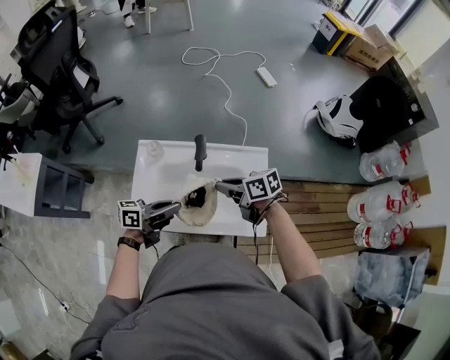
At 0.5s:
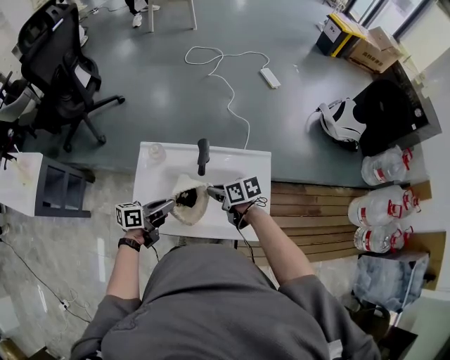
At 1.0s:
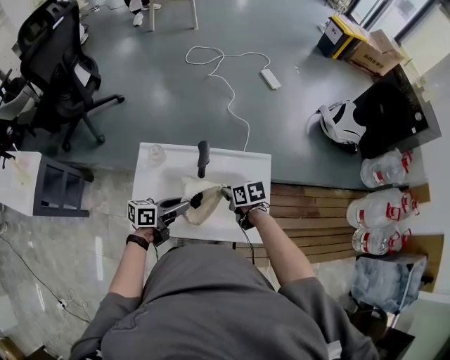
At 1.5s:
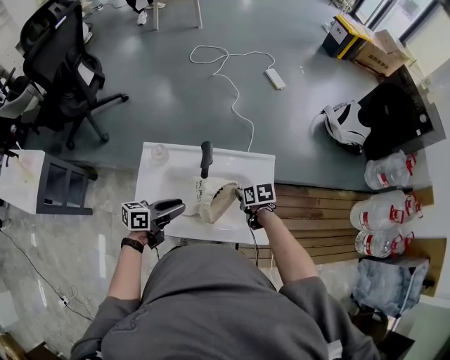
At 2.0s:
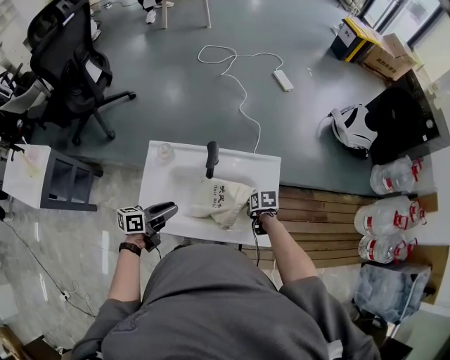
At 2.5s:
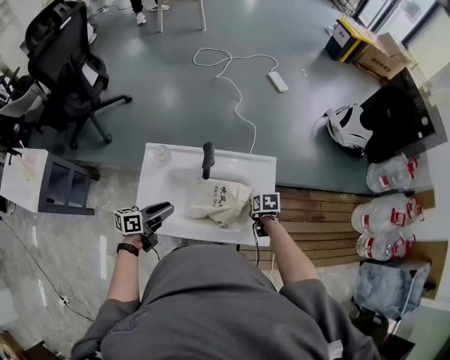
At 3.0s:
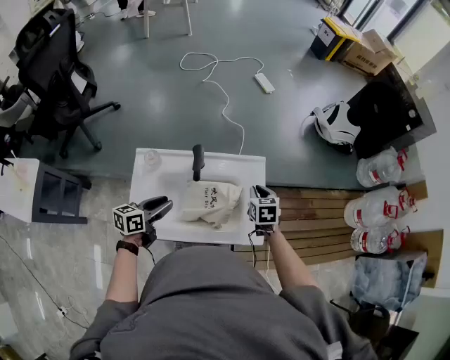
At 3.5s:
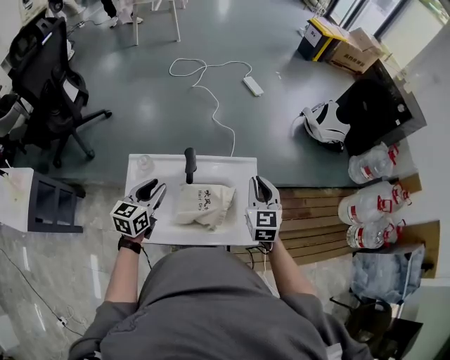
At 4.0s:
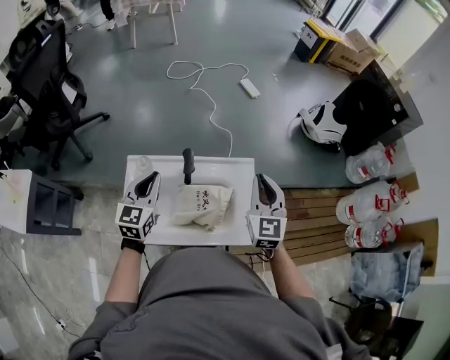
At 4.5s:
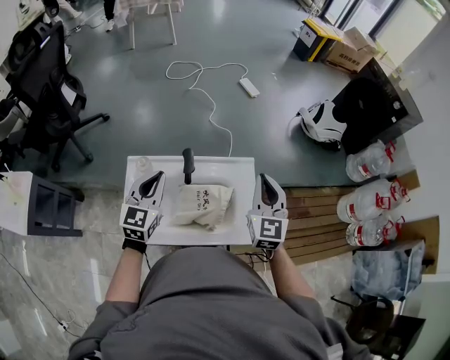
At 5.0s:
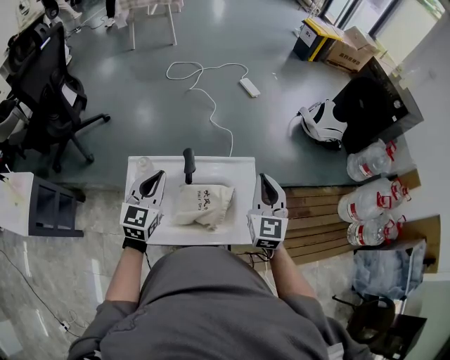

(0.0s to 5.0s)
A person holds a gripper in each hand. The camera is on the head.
0.0s - 2.5s: The right gripper heads downward, covering approximately 20 cm, and tilts its fingers roughly 40 degrees downward. The left gripper shifts by about 10 cm, rotates about 20 degrees, and opens its fingers.
2.5s - 5.0s: The left gripper is displaced upward and forward by roughly 20 cm, rolls clockwise, seen from behind, by roughly 50 degrees, and closes. Meanwhile the right gripper heads upward, covering some 35 cm, and tips its fingers upward by approximately 60 degrees.

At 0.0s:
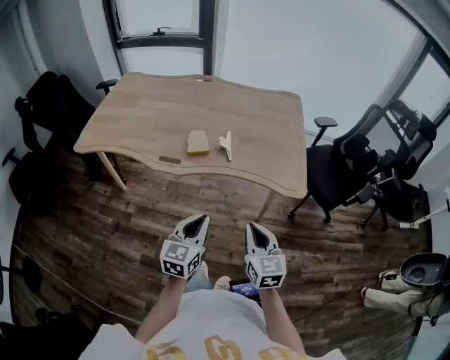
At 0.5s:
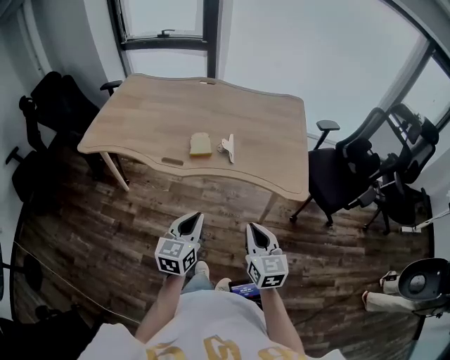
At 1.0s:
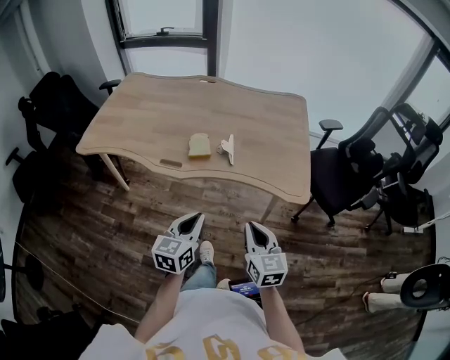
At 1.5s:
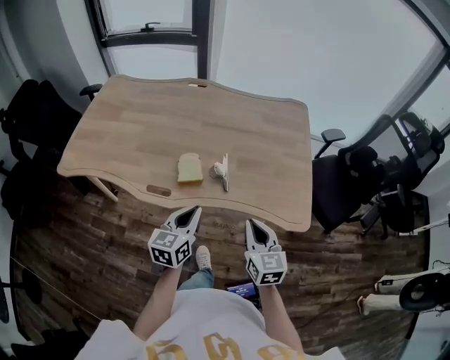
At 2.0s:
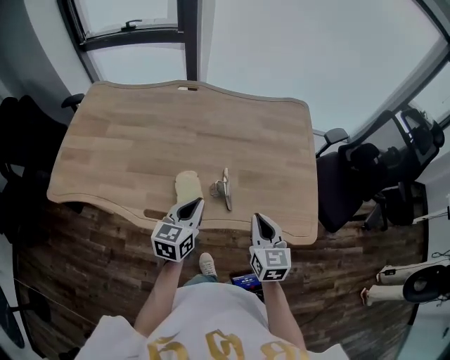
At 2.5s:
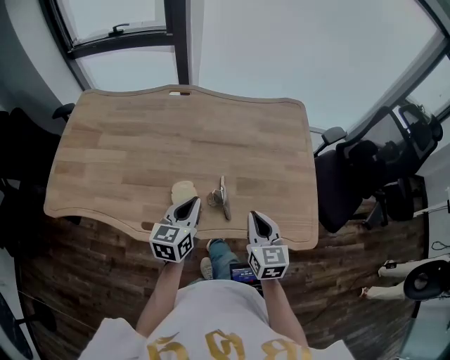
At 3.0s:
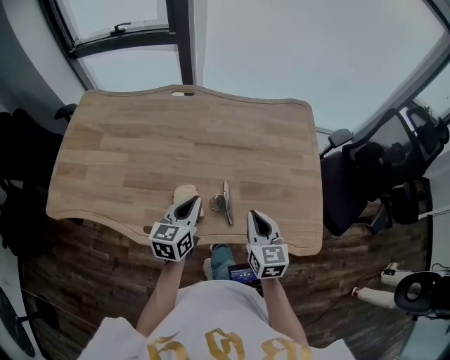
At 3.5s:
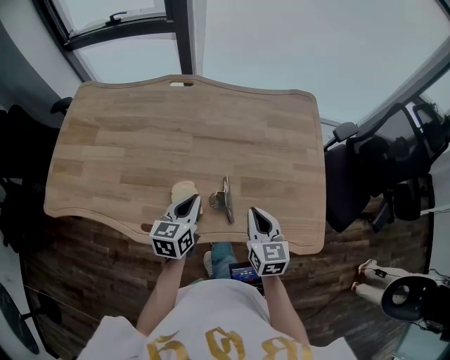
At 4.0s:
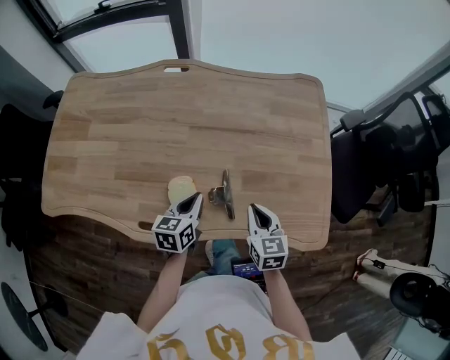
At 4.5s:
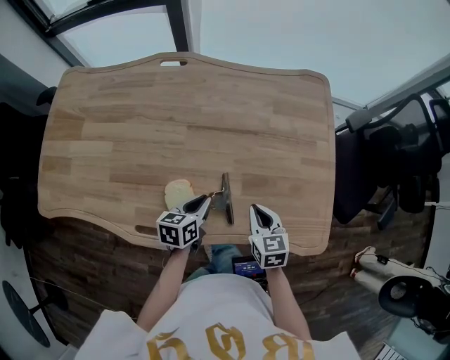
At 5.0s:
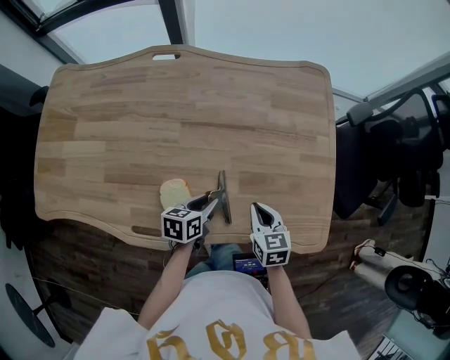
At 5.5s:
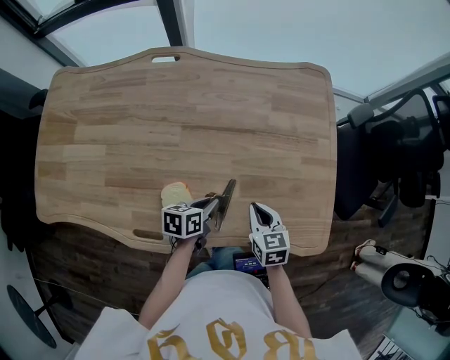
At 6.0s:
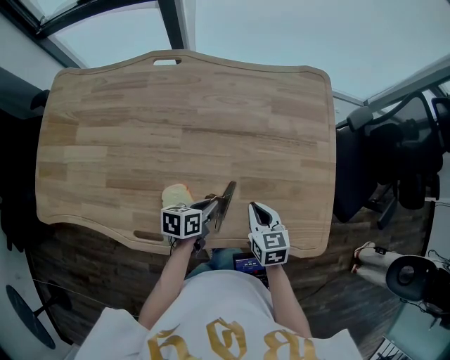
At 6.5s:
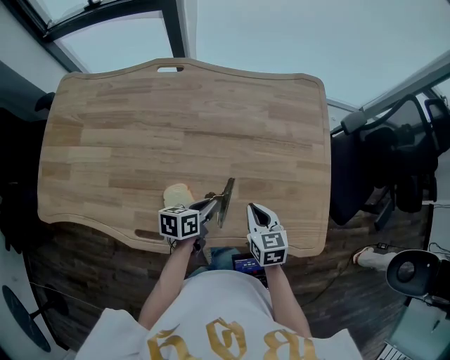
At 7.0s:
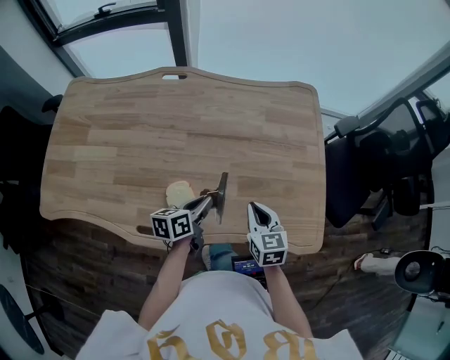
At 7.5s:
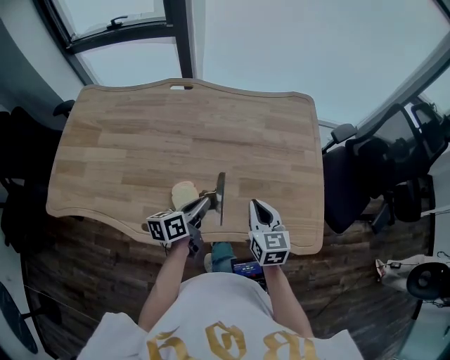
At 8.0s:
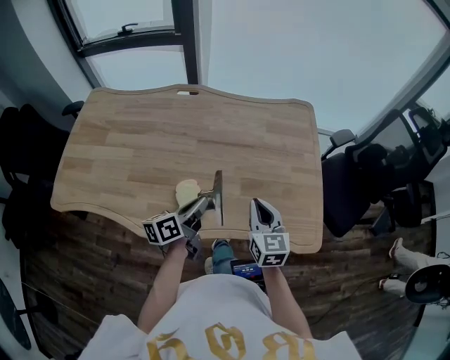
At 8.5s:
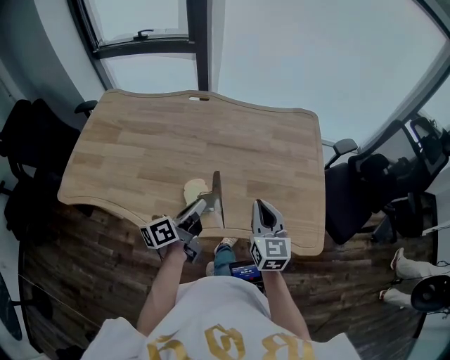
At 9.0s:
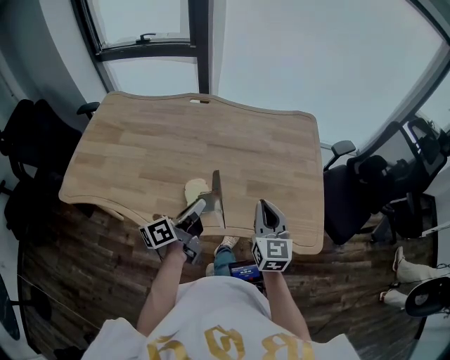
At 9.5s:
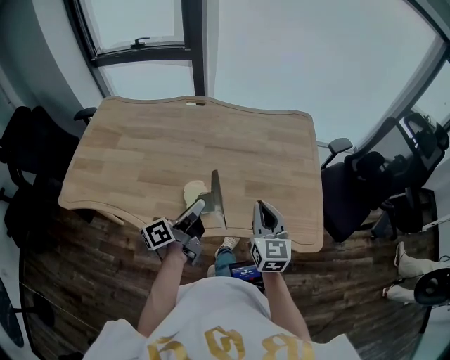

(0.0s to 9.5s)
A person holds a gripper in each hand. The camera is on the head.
0.0s - 2.0s: Both grippers travel together forward, roughly 35 cm.
2.0s - 4.0s: Both grippers move downward and forward, roughly 15 cm.
4.0s - 5.5s: The left gripper moves downward and to the right, about 10 cm, and rotates approximately 30 degrees. The right gripper heads downward, covering some 5 cm.
5.5s - 7.5s: Both grippers travel together upward, approximately 10 cm. The left gripper rotates about 30 degrees.
7.5s - 9.5s: The grippers both shift upward and backward by roughly 10 cm. The left gripper rotates about 30 degrees.

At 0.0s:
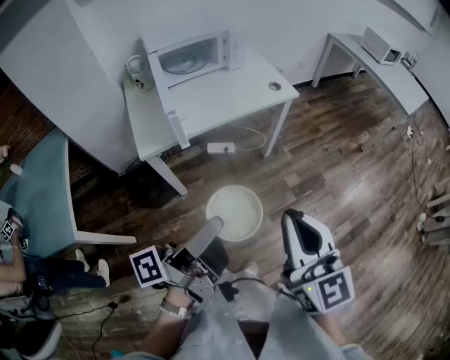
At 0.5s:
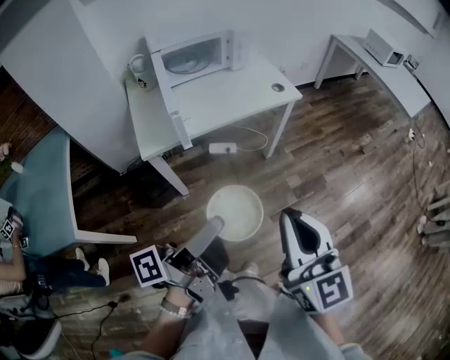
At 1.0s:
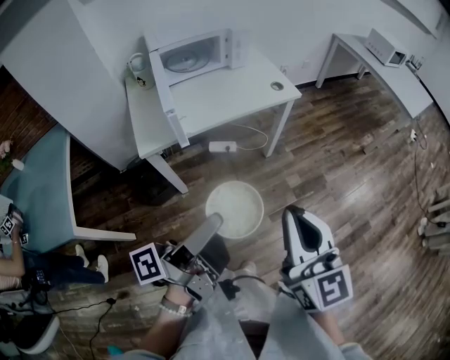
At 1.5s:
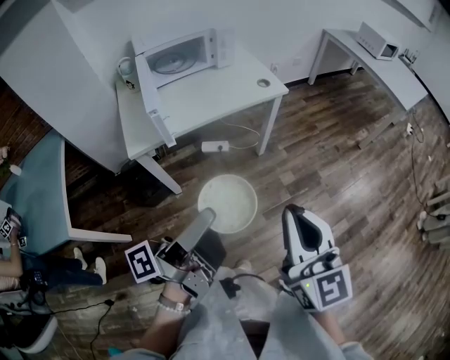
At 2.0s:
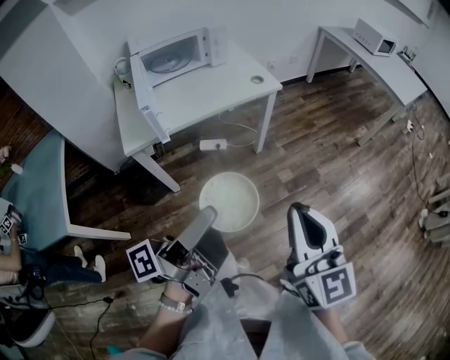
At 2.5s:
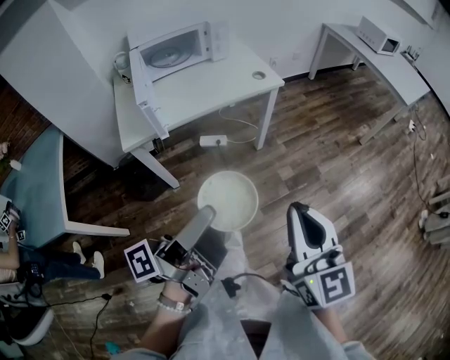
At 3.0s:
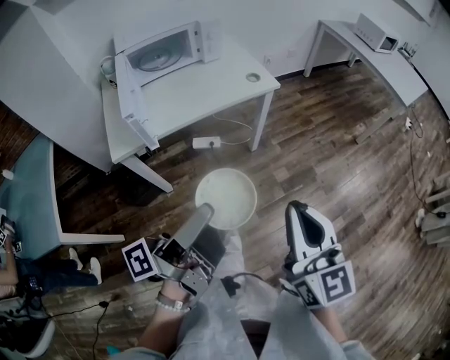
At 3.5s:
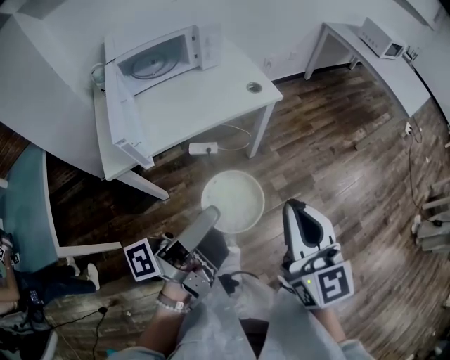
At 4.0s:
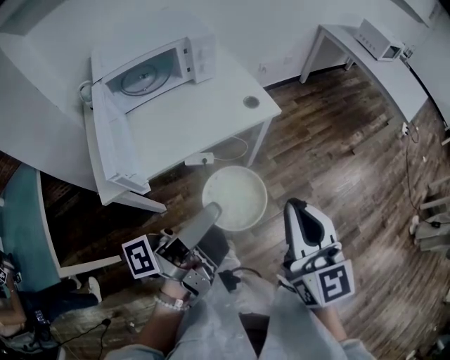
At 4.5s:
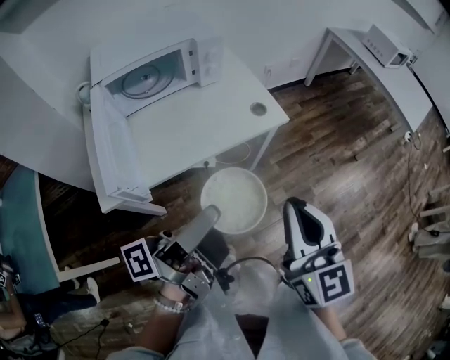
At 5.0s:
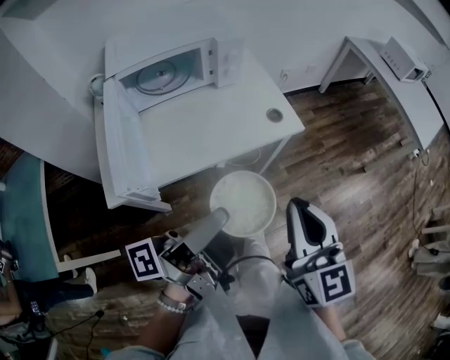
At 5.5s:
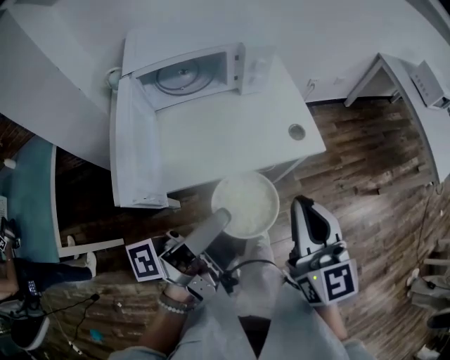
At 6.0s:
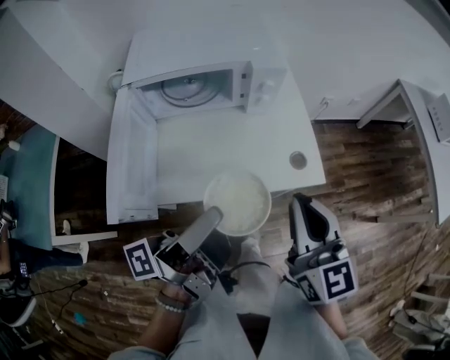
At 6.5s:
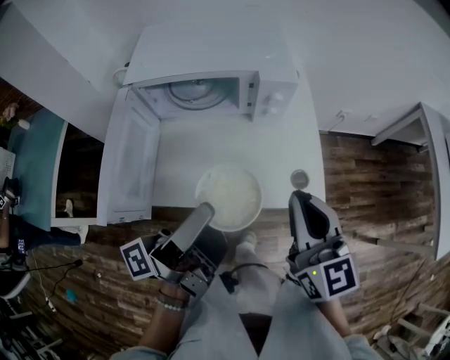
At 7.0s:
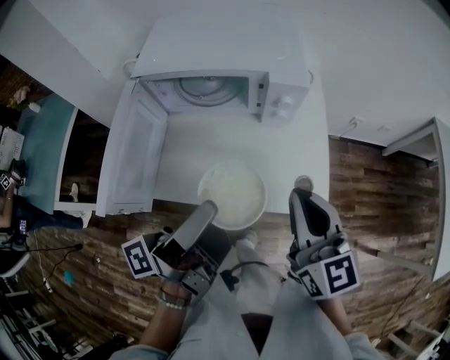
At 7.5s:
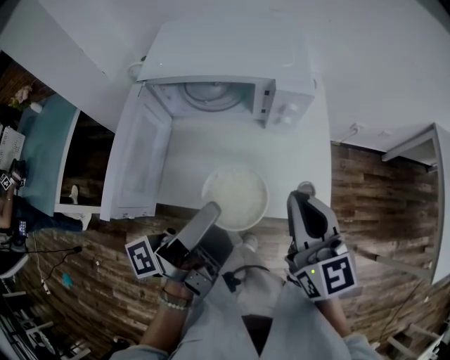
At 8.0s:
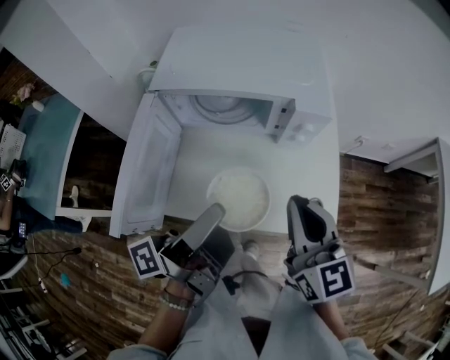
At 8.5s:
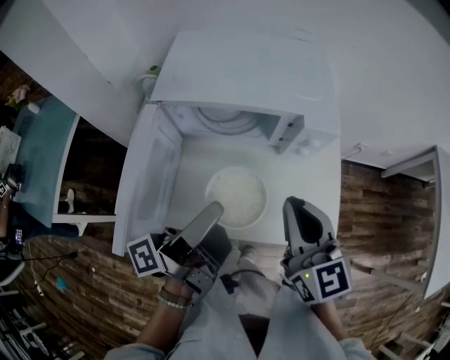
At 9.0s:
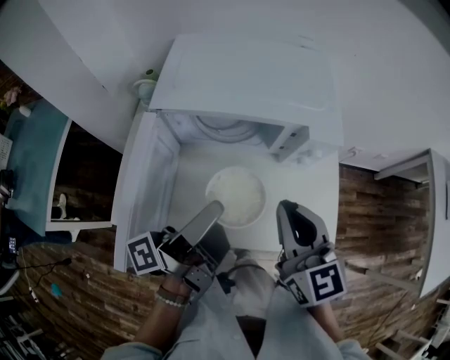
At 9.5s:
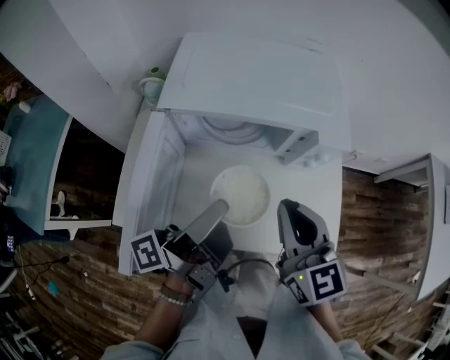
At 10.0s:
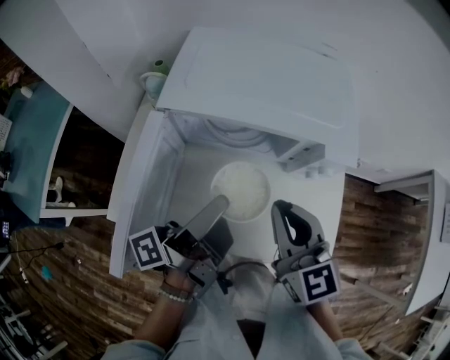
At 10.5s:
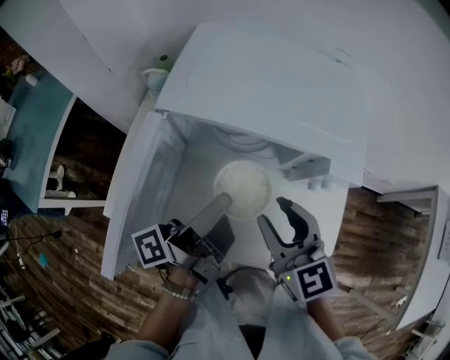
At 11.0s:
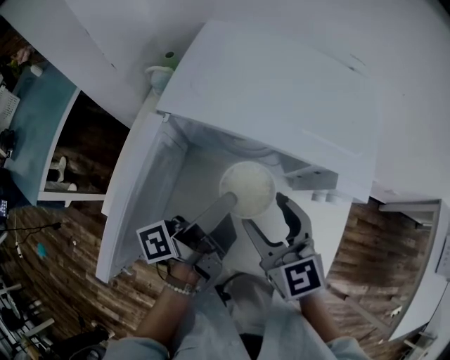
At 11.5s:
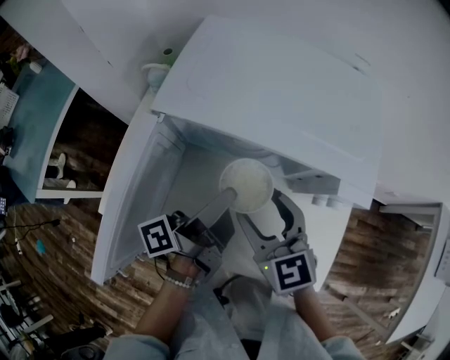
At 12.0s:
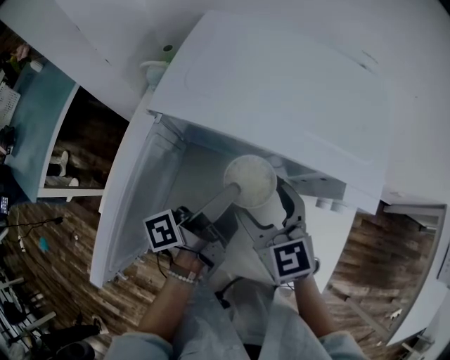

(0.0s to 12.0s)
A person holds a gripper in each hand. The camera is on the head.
0.0s - 2.0s: The right gripper ends up approximately 10 cm from where it was.
2.0s - 4.0s: The right gripper ends up about 20 cm from where it was.
4.0s - 6.0s: The right gripper ends up approximately 25 cm from where it was, and turns by some 20 degrees.
6.0s - 8.0s: The right gripper moves approximately 15 cm.
8.0s - 10.0s: The right gripper moves about 10 cm.
10.0s - 12.0s: The right gripper moves downward, approximately 10 cm, and opens its fingers.
